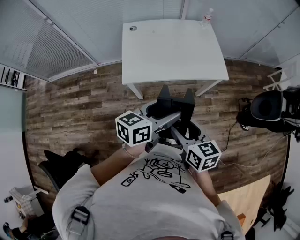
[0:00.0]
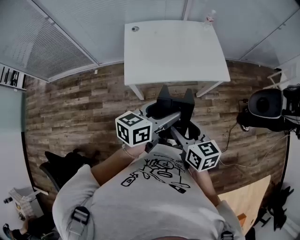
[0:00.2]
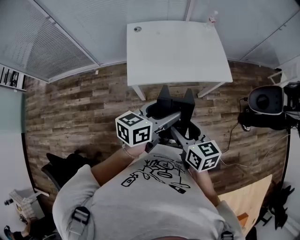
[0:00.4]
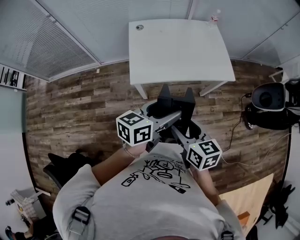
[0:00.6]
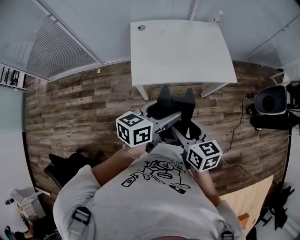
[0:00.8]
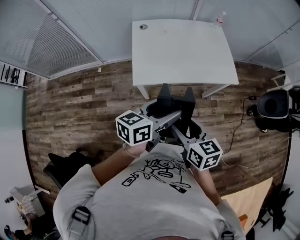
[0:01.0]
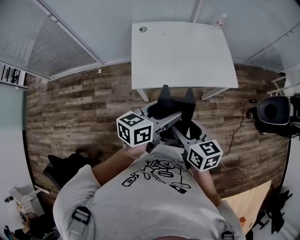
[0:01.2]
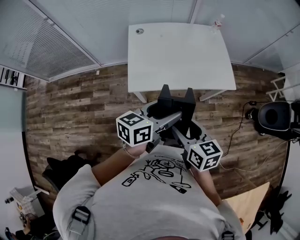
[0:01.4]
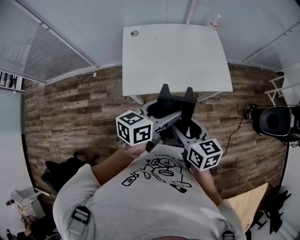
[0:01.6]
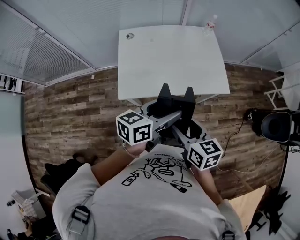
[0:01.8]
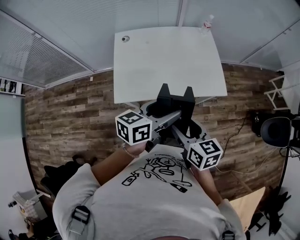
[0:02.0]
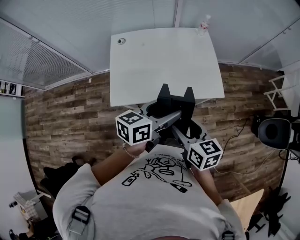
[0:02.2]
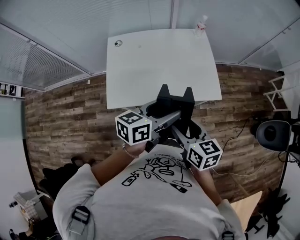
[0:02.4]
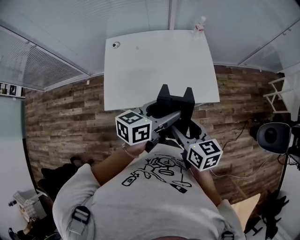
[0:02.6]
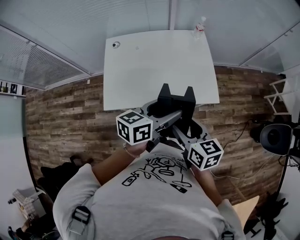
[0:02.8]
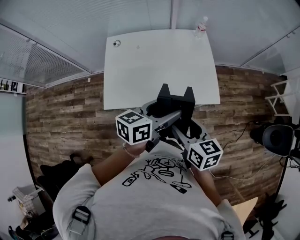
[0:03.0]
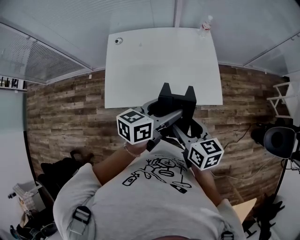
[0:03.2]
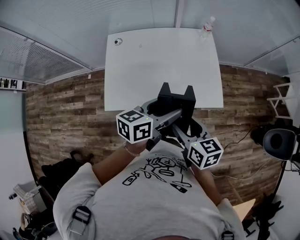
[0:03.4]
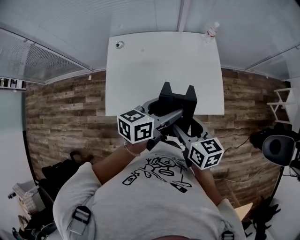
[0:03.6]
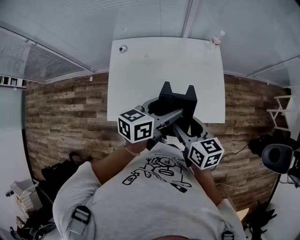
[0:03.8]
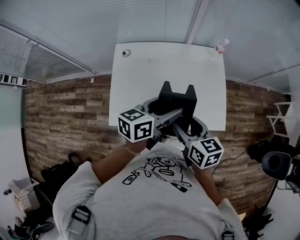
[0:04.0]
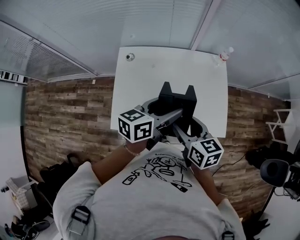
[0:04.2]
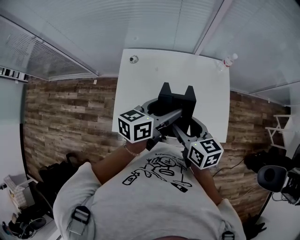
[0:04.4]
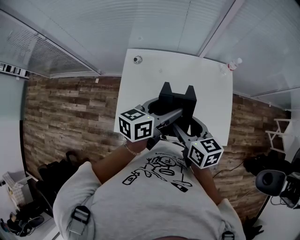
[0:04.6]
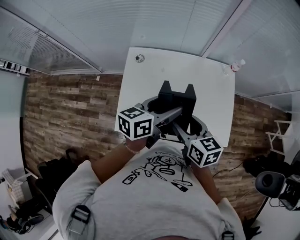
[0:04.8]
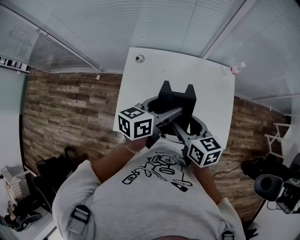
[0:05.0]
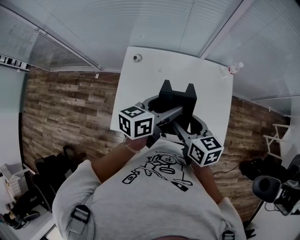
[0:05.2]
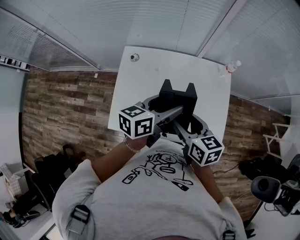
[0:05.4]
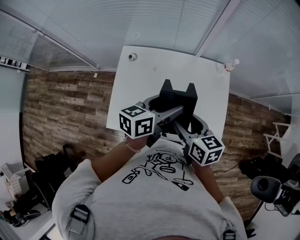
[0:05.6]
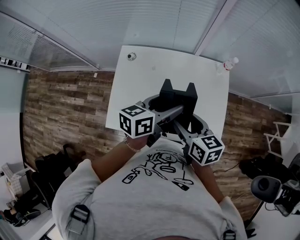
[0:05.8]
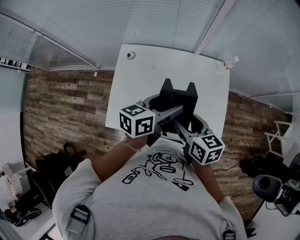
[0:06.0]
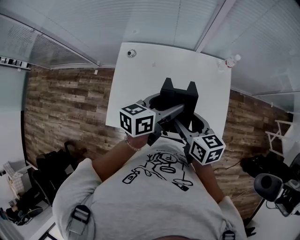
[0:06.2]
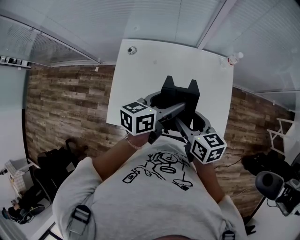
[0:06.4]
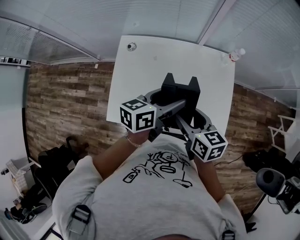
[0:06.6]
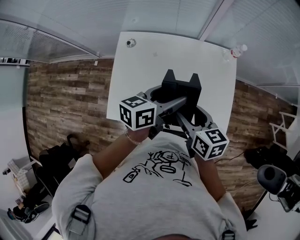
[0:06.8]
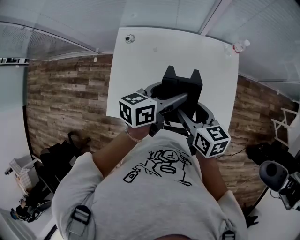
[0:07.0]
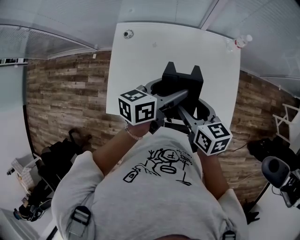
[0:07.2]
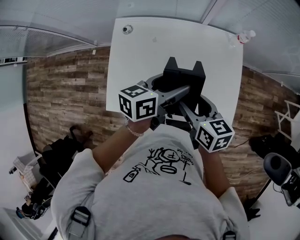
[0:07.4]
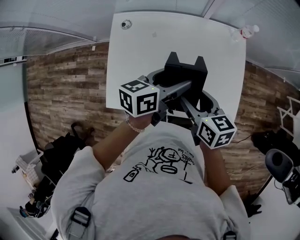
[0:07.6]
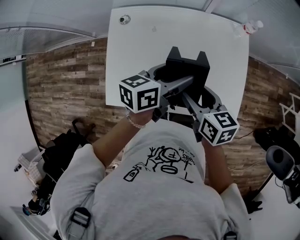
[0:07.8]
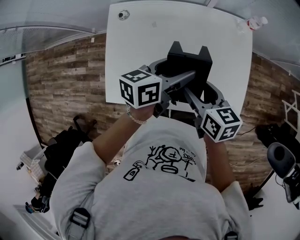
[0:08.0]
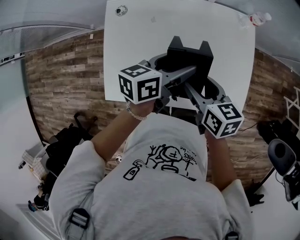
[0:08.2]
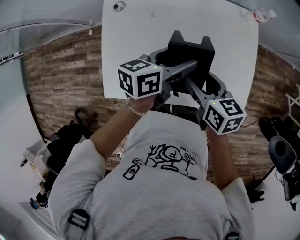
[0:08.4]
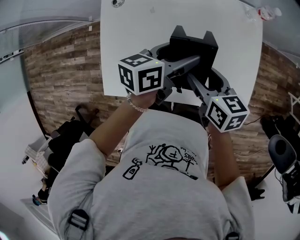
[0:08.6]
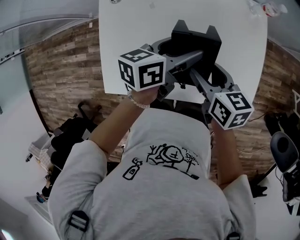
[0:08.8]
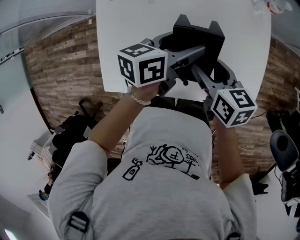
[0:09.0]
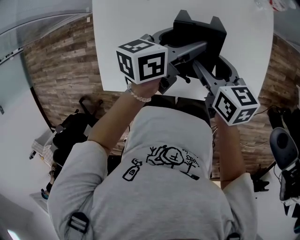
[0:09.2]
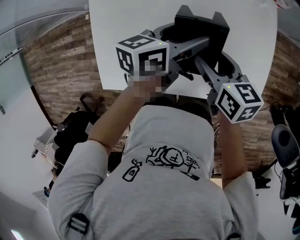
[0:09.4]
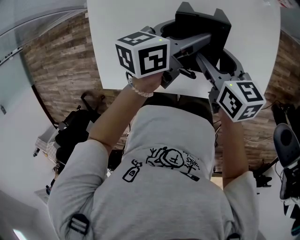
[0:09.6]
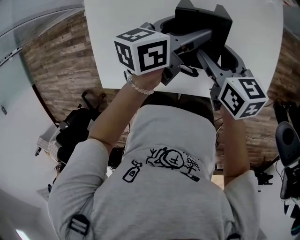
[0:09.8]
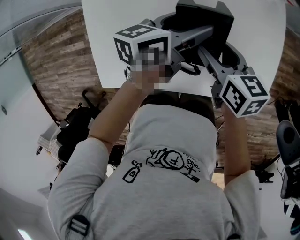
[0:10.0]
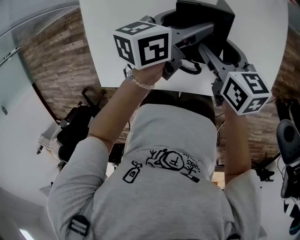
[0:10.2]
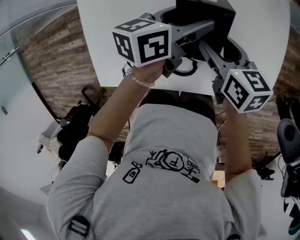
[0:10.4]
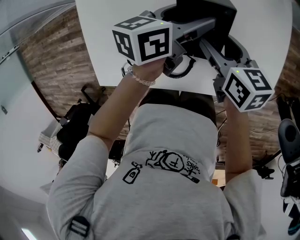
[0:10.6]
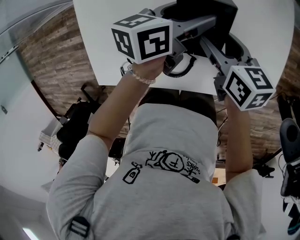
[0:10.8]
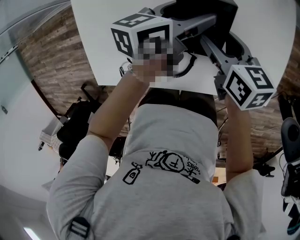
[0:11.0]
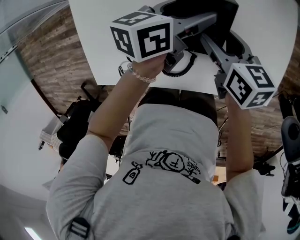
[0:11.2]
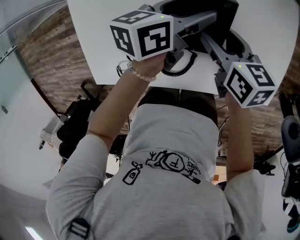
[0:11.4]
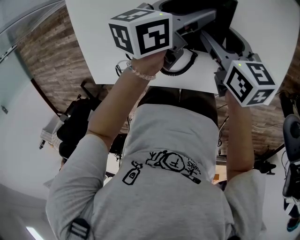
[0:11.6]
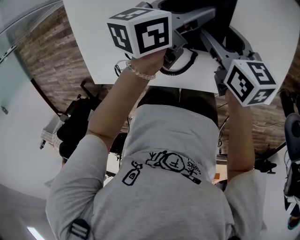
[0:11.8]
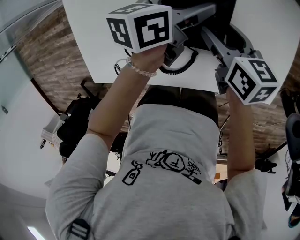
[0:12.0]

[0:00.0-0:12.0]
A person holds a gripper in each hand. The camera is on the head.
0.0 to 1.6 s: The grippers both shift forward by approximately 10 cm.
1.6 to 3.0 s: The grippers both shift to the right and forward by about 20 cm.
3.0 to 4.4 s: The grippers both shift forward and to the left by approximately 25 cm.
4.4 to 6.0 s: The right gripper ends up approximately 5 cm from where it was; the left gripper moves approximately 5 cm.
6.0 to 7.6 s: Both grippers move downward, about 5 cm.
7.6 to 9.0 s: The two grippers go roughly 10 cm downward and forward.
9.0 to 10.4 s: The grippers both shift downward by roughly 10 cm.
10.4 to 12.0 s: The grippers stay close to where they were, moving slightly.

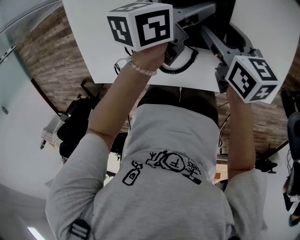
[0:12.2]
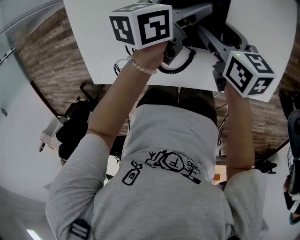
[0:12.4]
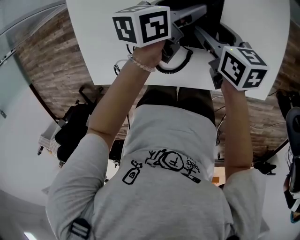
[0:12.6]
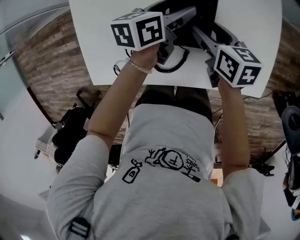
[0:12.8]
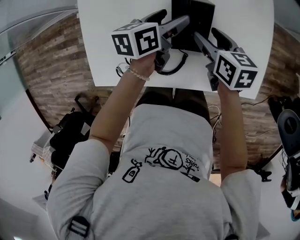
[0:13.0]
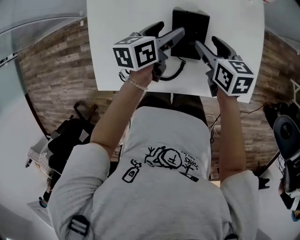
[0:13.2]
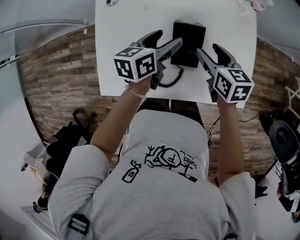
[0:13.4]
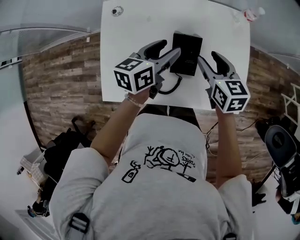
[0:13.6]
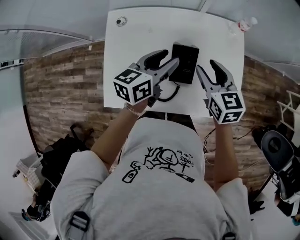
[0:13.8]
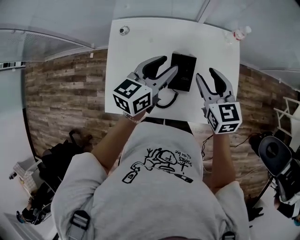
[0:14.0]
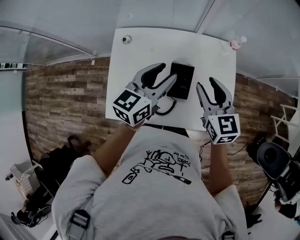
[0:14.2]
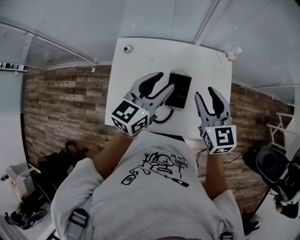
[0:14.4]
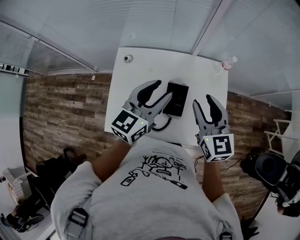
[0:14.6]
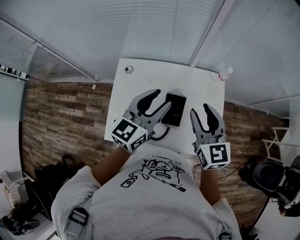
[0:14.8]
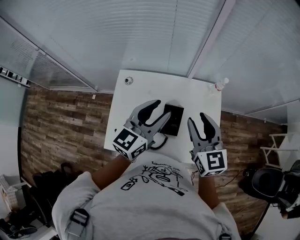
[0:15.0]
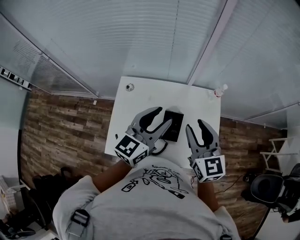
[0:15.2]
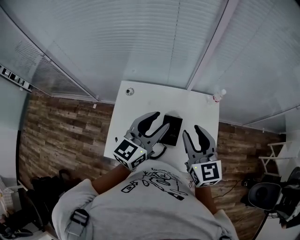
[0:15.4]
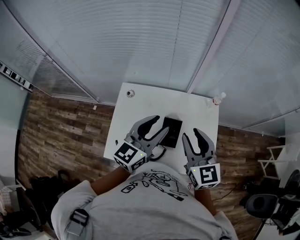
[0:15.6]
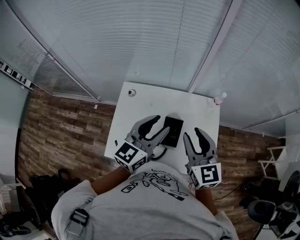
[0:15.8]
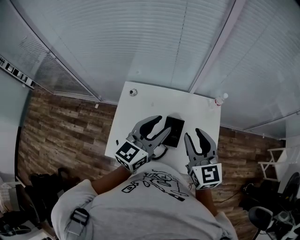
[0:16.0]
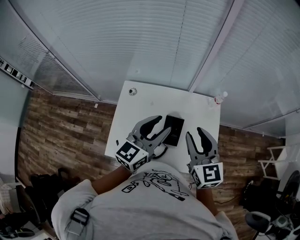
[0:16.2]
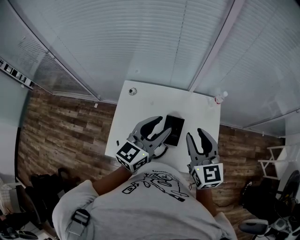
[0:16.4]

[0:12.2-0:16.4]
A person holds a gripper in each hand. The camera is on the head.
12.2 to 13.6 s: Both grippers move upward, about 15 cm. The right gripper changes its angle by approximately 20 degrees.
13.6 to 15.0 s: Both grippers move upward, approximately 25 cm. The left gripper swivels roughly 30 degrees. Meanwhile the right gripper rotates approximately 30 degrees.
15.0 to 16.4 s: The grippers stay close to where they were, moving slightly.

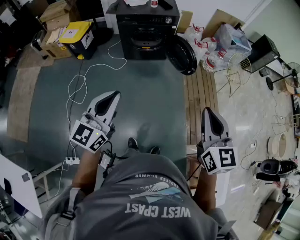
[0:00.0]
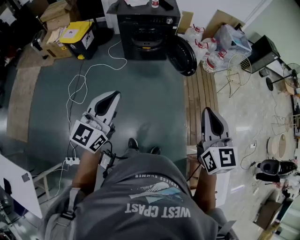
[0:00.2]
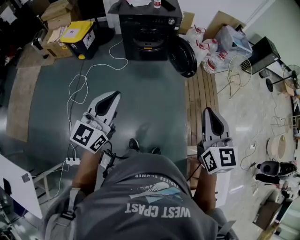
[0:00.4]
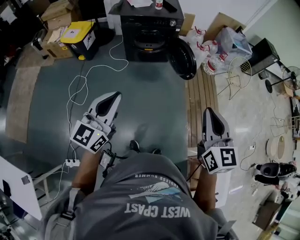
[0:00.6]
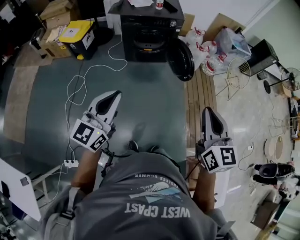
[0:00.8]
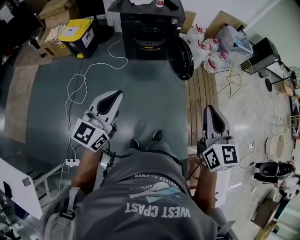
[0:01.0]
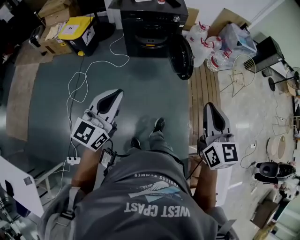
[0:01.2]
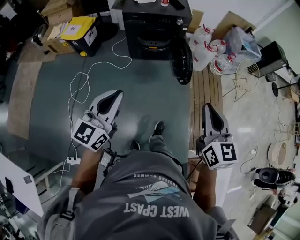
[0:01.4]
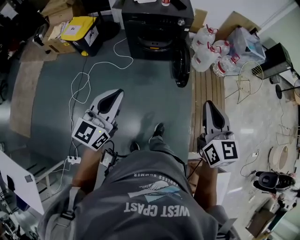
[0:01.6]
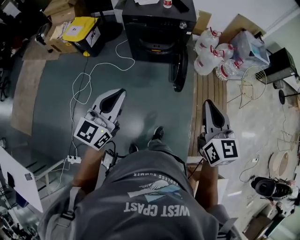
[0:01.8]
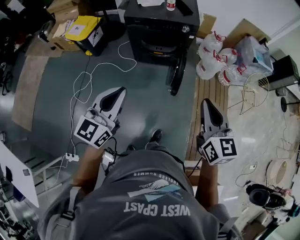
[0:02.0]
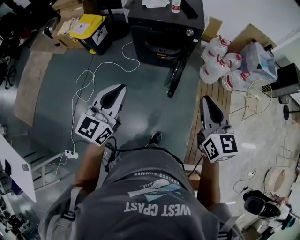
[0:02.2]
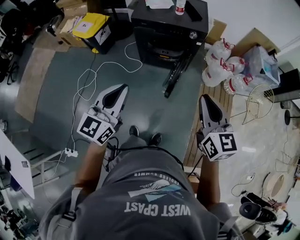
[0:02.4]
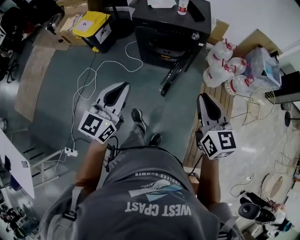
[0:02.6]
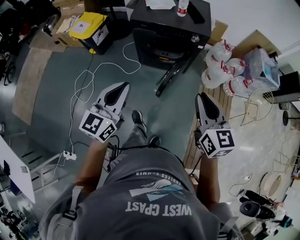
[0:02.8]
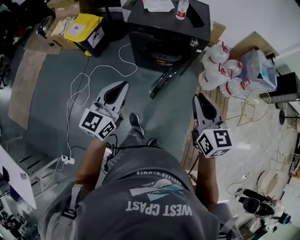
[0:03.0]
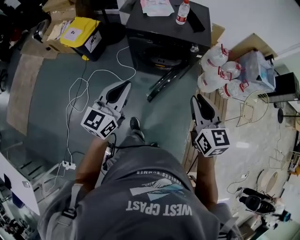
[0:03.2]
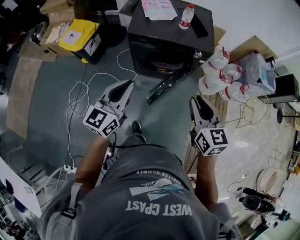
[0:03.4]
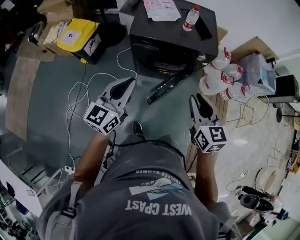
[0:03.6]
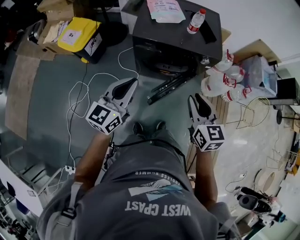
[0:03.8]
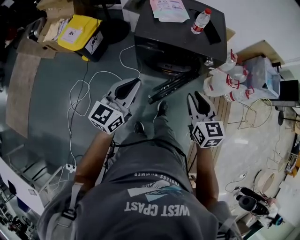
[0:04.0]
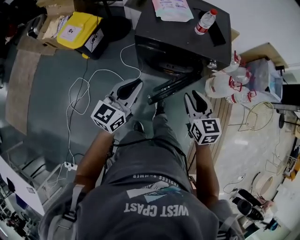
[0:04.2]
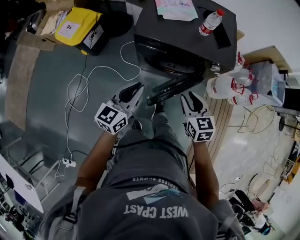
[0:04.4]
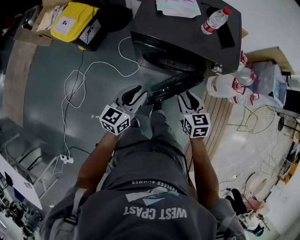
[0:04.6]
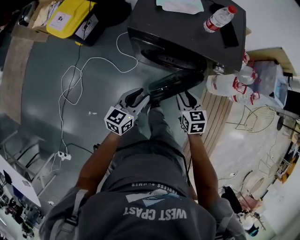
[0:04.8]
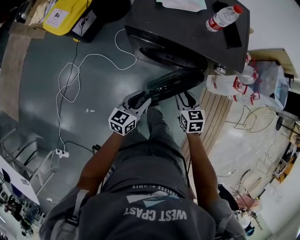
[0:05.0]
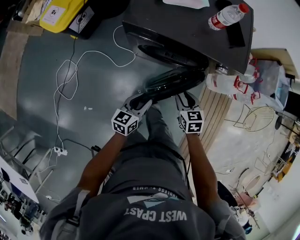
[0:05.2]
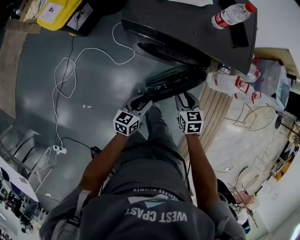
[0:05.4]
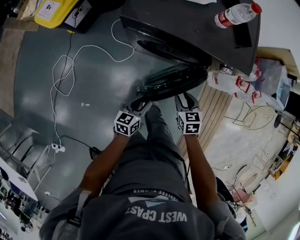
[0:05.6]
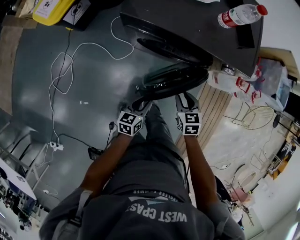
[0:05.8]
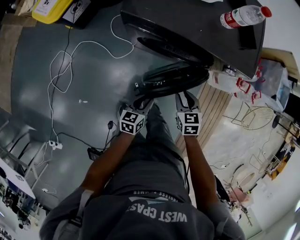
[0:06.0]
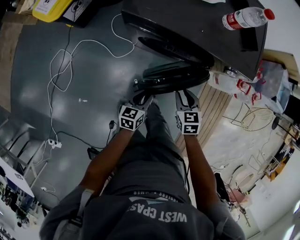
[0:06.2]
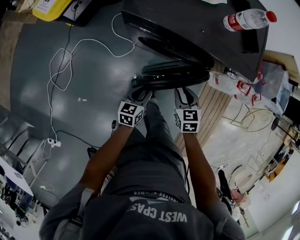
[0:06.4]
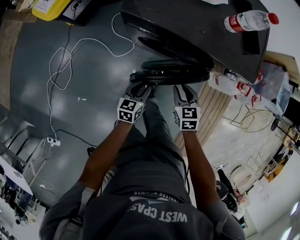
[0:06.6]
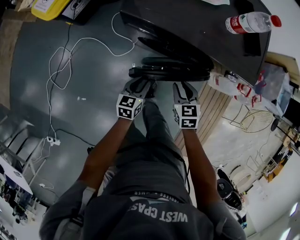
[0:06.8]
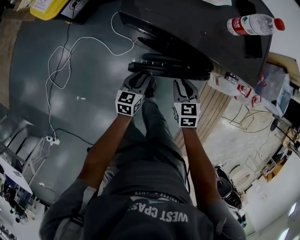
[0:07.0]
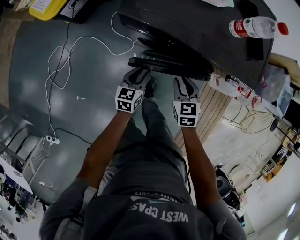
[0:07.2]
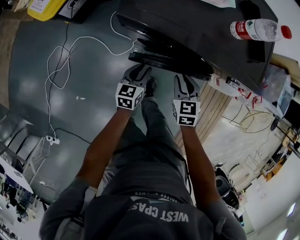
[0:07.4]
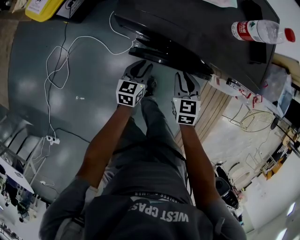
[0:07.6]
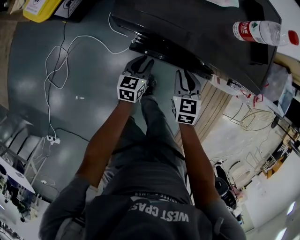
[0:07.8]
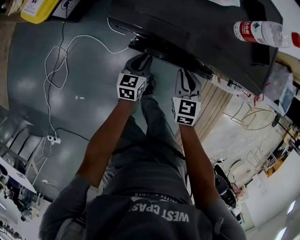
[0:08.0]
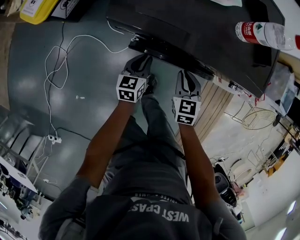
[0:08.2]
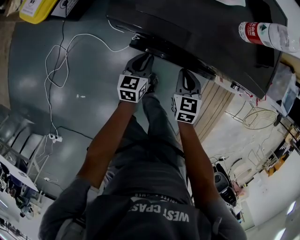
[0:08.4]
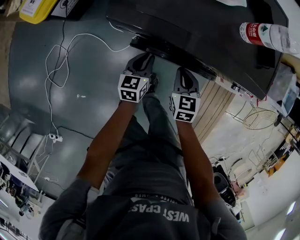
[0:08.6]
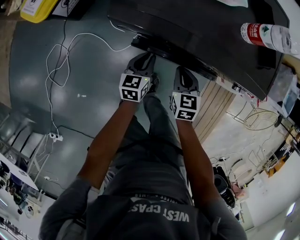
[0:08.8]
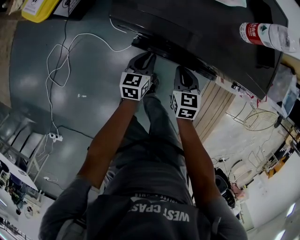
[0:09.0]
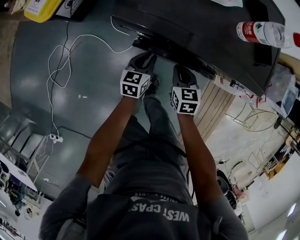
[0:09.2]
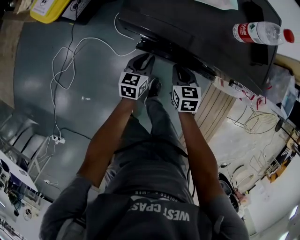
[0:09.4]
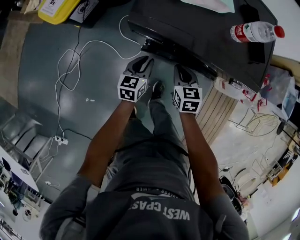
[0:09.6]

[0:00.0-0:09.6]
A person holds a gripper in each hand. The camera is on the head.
0.0 to 1.6 s: The two grippers go roughly 15 cm forward.
1.6 to 3.2 s: Both grippers travel together forward, some 30 cm.
3.2 to 4.8 s: The grippers both shift downward and forward by roughly 35 cm. The left gripper rotates some 20 degrees, and opens. Meanwhile the right gripper rotates roughly 30 degrees.
4.8 to 6.4 s: The right gripper heads downward, covering about 10 cm, while the left gripper heads downward, covering about 20 cm.
6.4 to 8.0 s: Both grippers move forward, some 15 cm.
8.0 to 9.6 s: The right gripper goes some 5 cm to the left, while the left gripper shifts about 5 cm upward.
